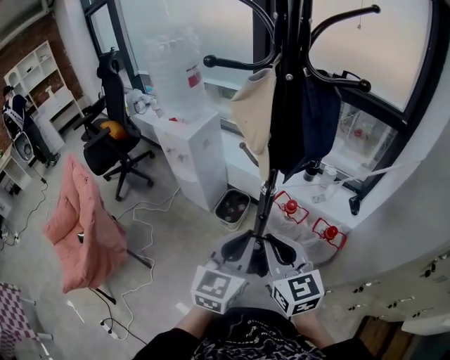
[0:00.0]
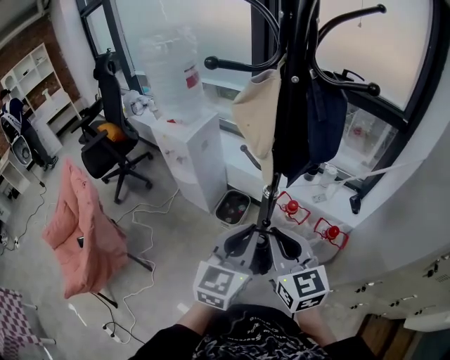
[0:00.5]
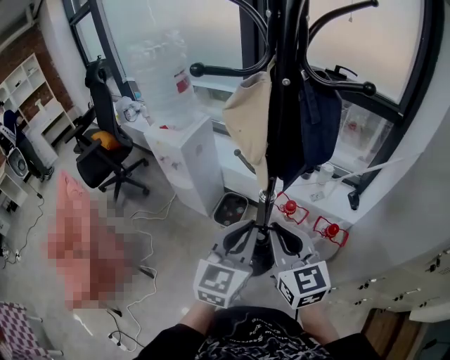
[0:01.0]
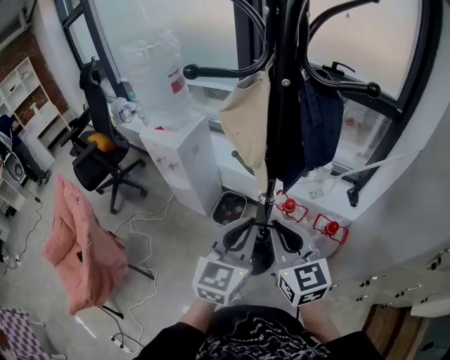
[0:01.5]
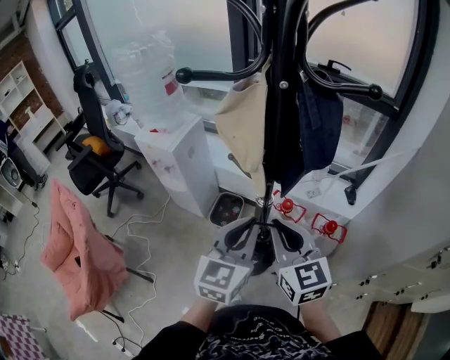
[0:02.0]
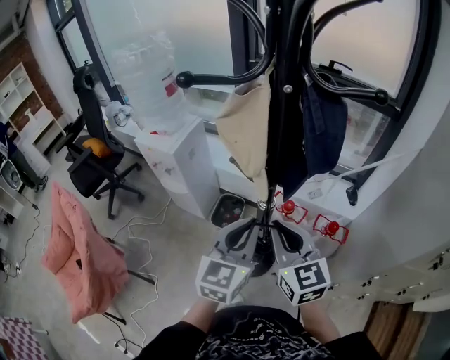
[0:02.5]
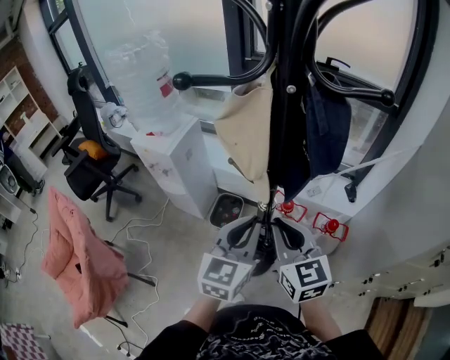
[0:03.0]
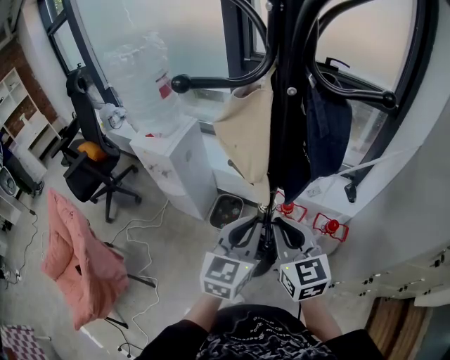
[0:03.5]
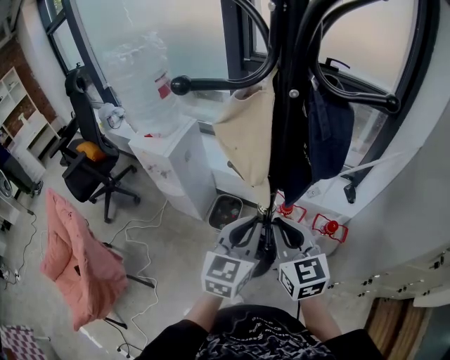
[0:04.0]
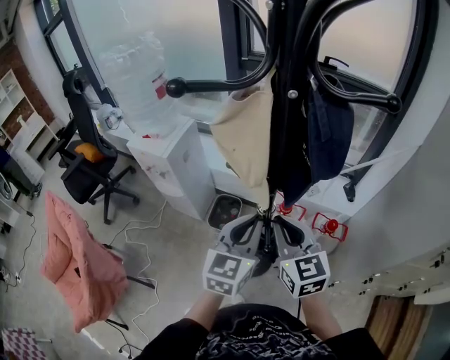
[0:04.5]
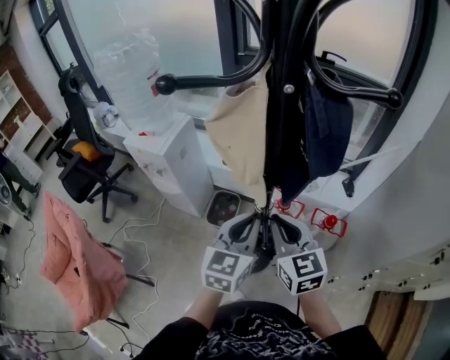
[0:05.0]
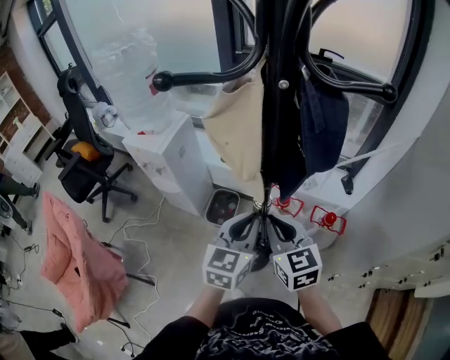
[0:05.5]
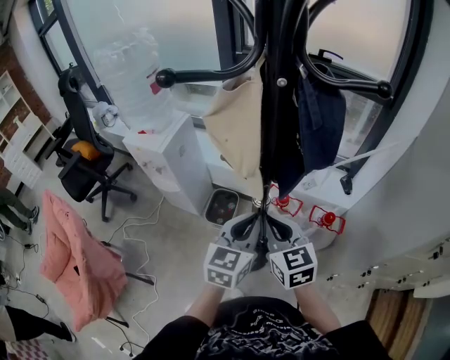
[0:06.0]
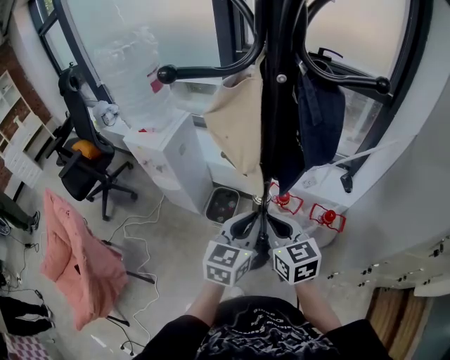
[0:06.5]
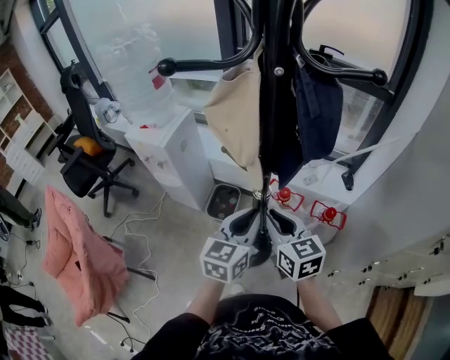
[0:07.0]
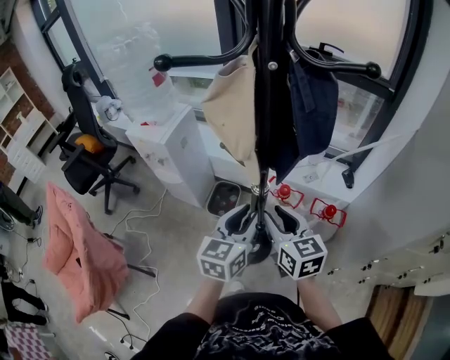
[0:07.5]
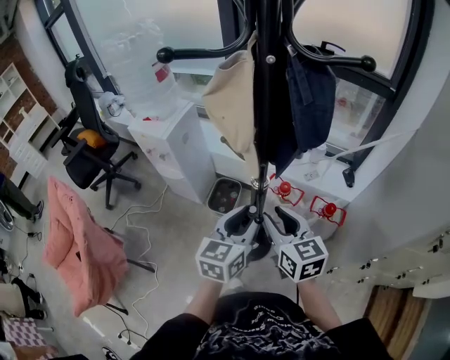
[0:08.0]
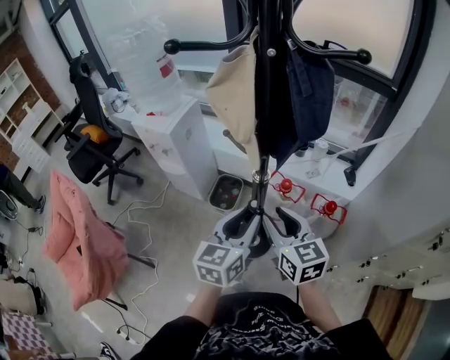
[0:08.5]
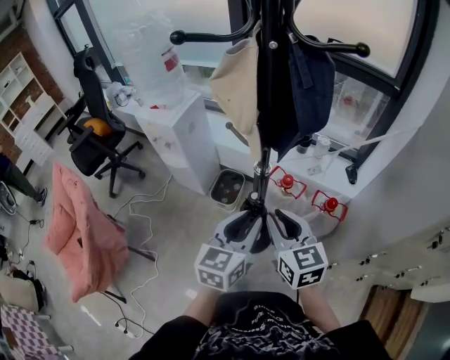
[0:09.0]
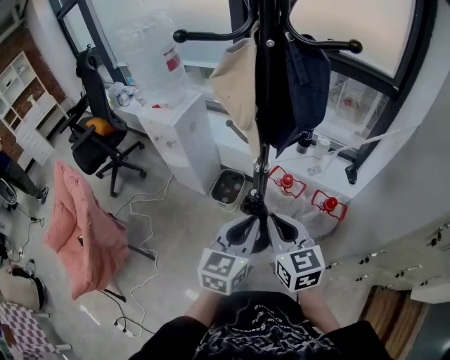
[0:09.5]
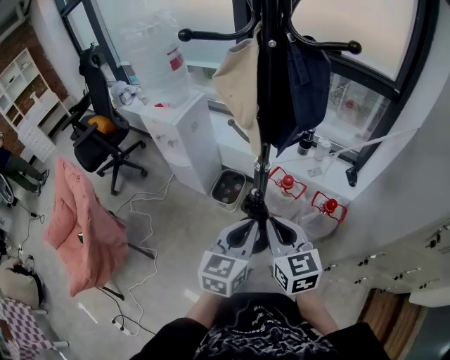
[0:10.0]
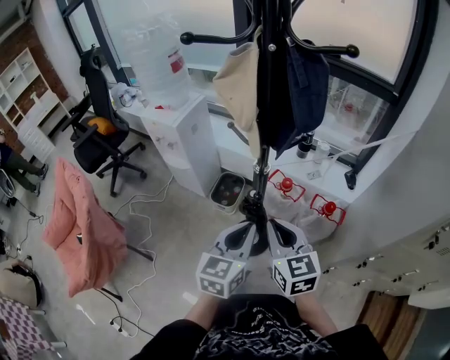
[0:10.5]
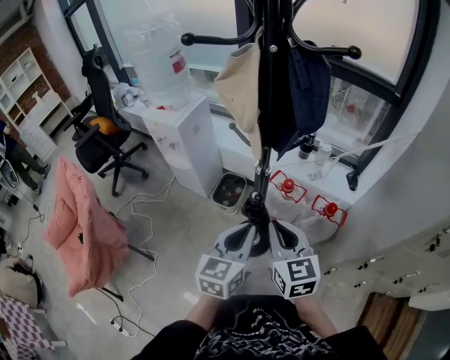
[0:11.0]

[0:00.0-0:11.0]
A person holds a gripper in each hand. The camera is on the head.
0:00.0 to 0:02.0: Both grippers travel together forward, some 5 cm.
0:02.0 to 0:03.5: The grippers stay close to where they were, moving slightly.
0:03.5 to 0:05.5: There are only small adjustments of the grippers.
0:05.5 to 0:07.5: The right gripper opens up; the left gripper opens.
0:07.5 to 0:09.0: The grippers both shift backward by about 5 cm.
0:09.0 to 0:11.0: The left gripper closes up.

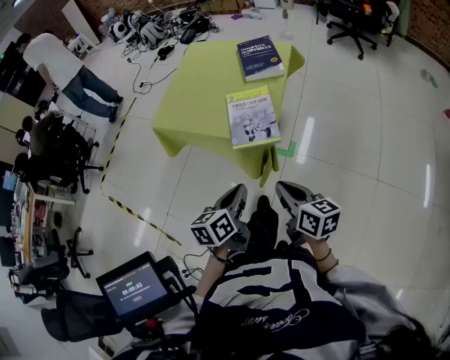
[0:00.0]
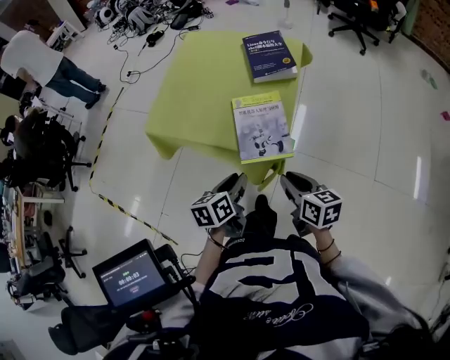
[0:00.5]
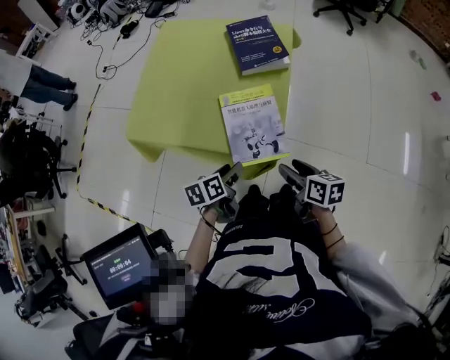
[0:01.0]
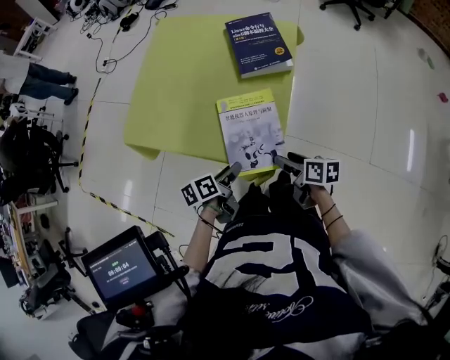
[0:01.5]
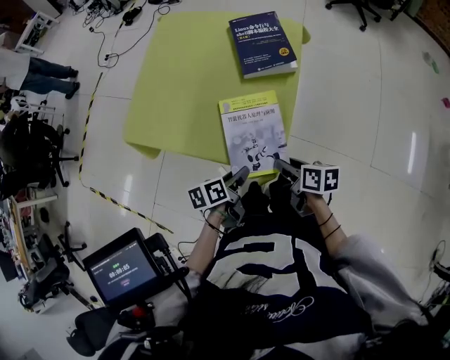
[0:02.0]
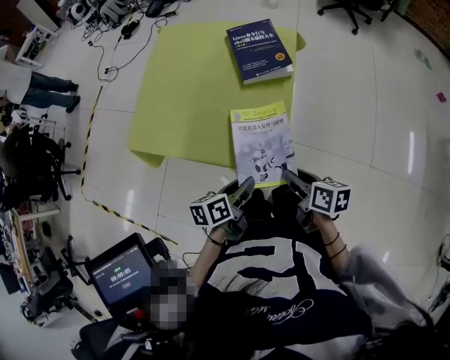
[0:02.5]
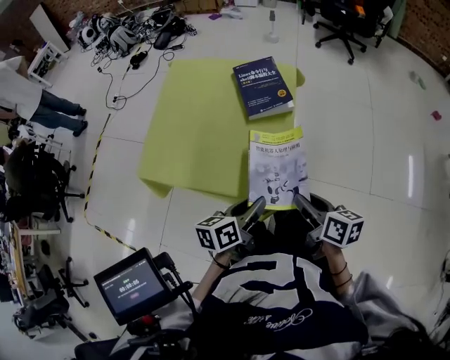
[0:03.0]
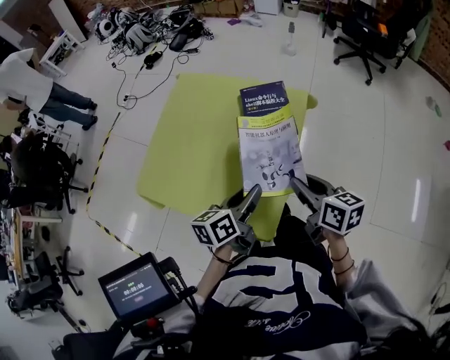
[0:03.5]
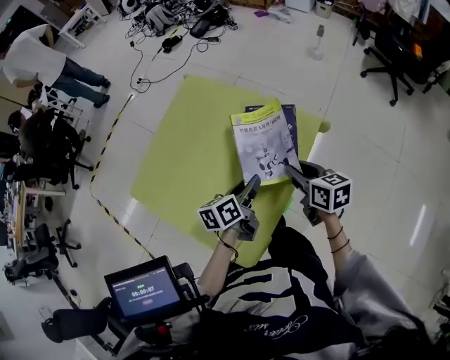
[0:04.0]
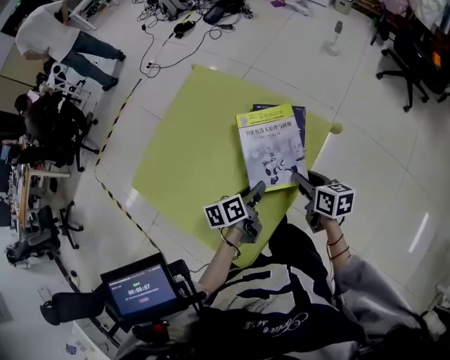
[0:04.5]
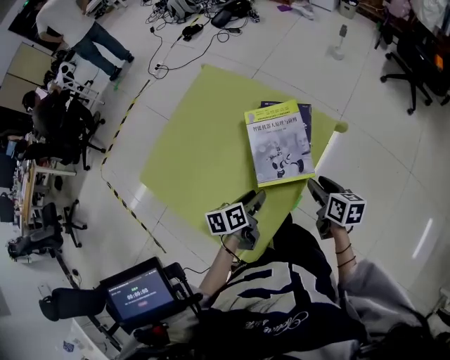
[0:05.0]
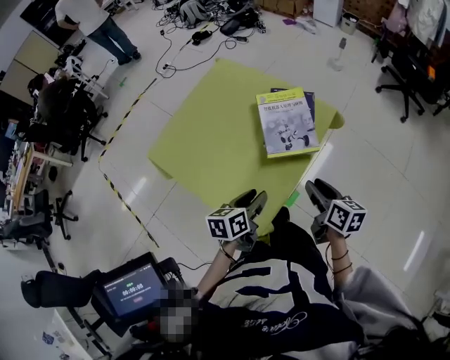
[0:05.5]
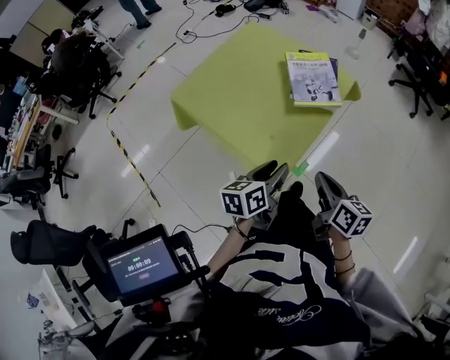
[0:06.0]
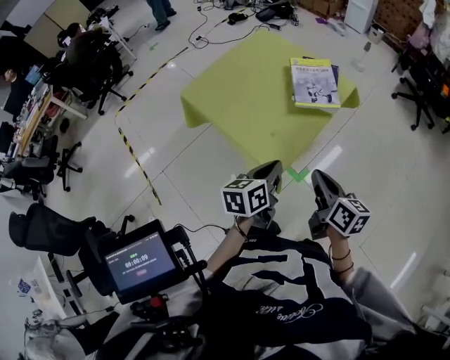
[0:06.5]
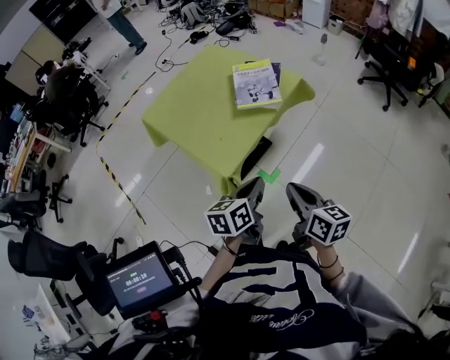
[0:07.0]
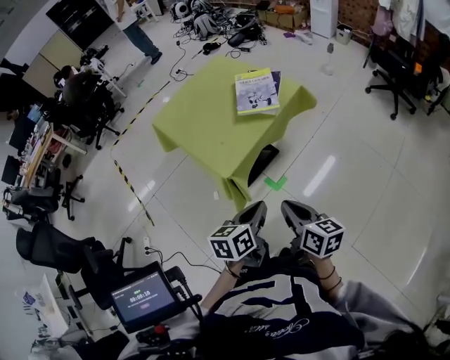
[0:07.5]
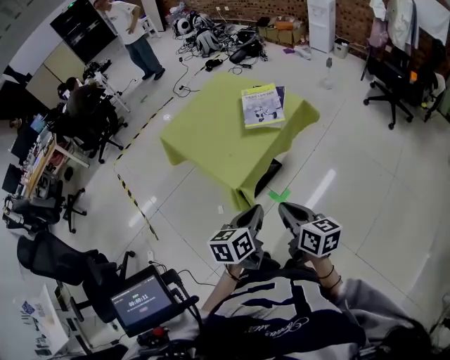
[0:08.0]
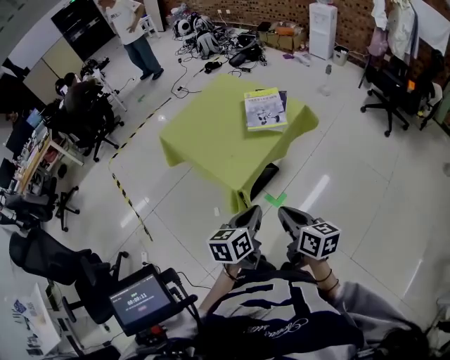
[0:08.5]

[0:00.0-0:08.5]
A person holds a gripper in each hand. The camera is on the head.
0:00.0 to 0:02.0: The grippers both shift forward and downward by approximately 30 cm. The left gripper rotates some 30 degrees, and opens. Meanwhile the right gripper rotates some 30 degrees, and opens its fingers.
0:02.0 to 0:04.0: Both grippers travel together forward, roughly 30 cm. The right gripper rotates some 30 degrees, while the left gripper rotates about 20 degrees.
0:04.0 to 0:06.5: Both grippers move backward, about 35 cm. The right gripper closes up. The left gripper closes up.
0:06.5 to 0:08.5: Both grippers travel together backward and to the right, approximately 15 cm.

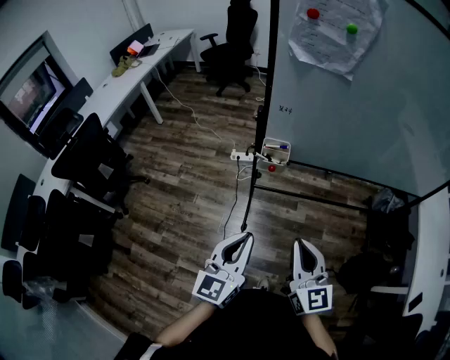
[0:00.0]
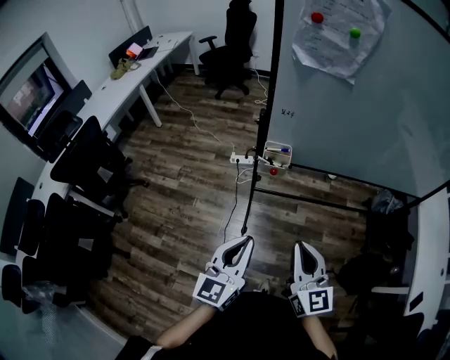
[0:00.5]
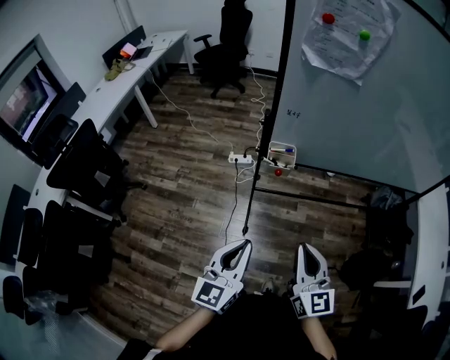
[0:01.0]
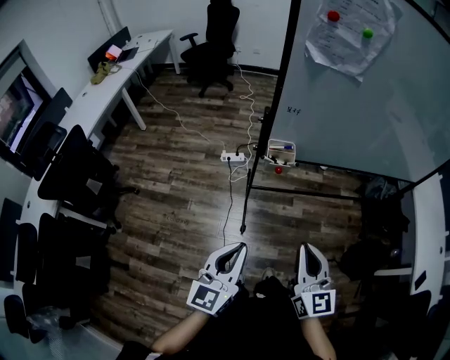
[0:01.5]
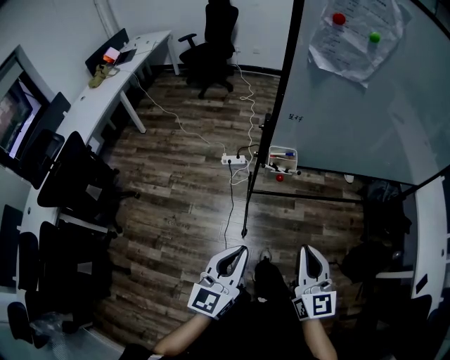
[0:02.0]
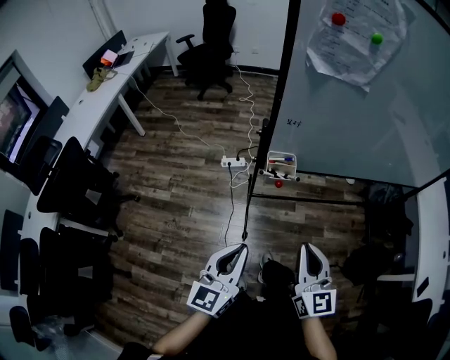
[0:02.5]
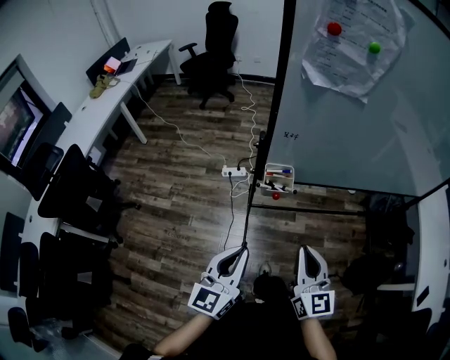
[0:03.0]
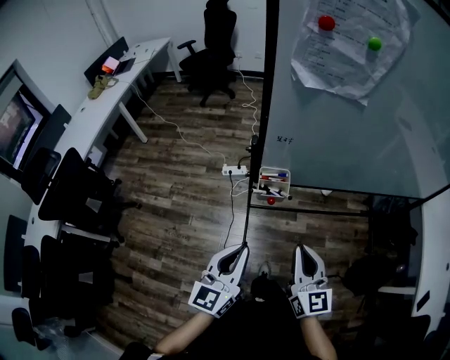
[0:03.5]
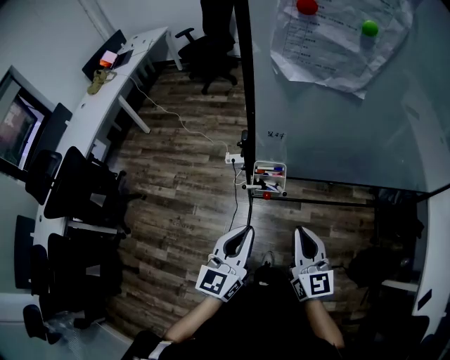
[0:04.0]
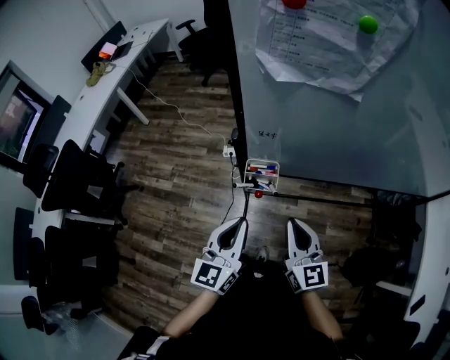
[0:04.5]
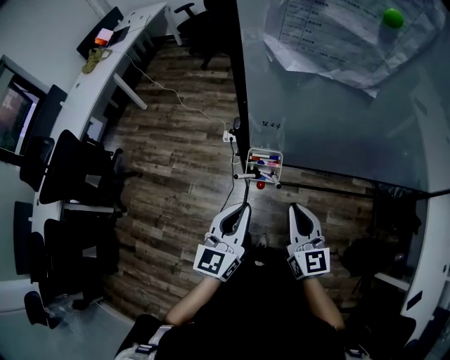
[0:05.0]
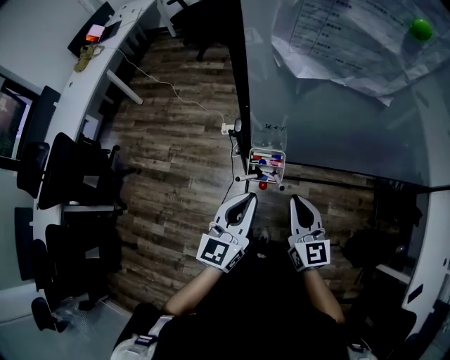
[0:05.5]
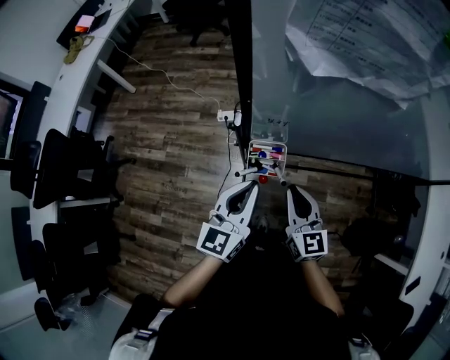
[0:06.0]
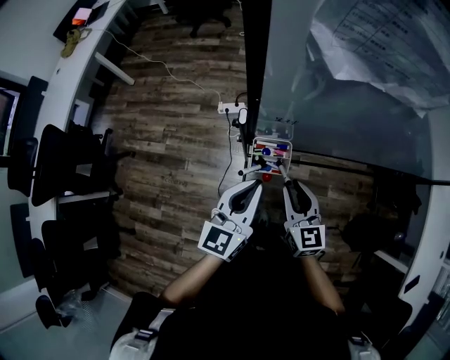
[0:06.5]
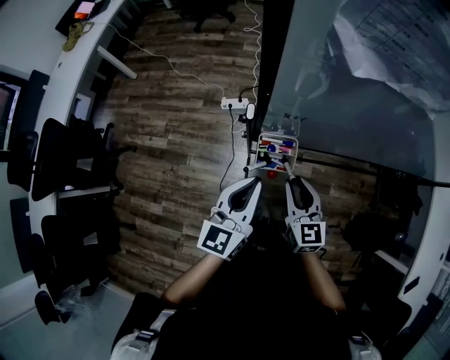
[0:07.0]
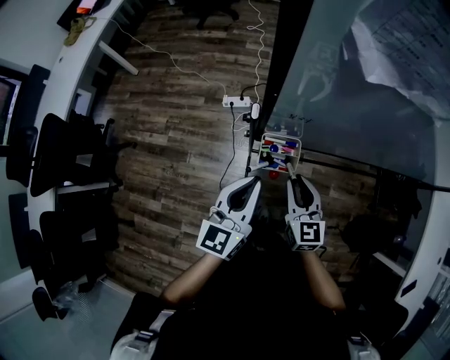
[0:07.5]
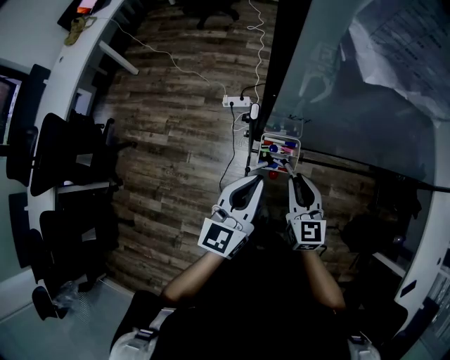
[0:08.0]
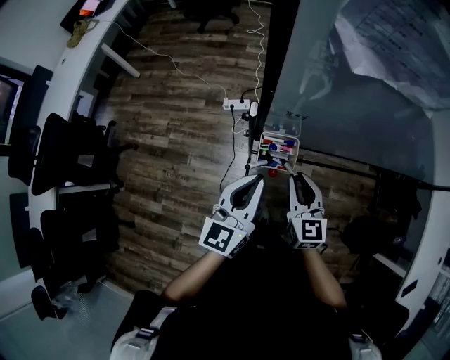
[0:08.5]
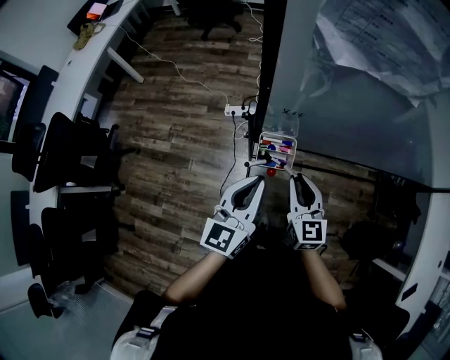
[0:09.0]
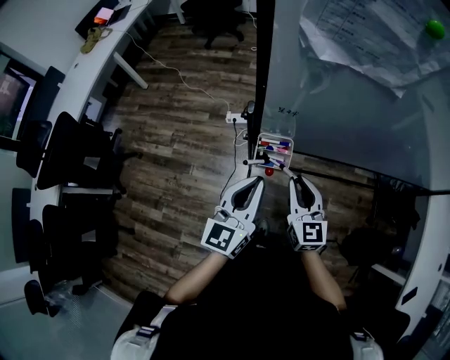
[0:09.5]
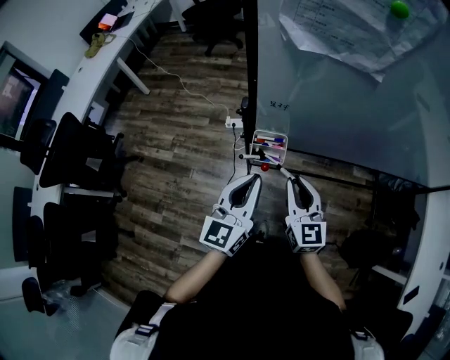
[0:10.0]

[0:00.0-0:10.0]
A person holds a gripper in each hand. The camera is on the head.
0:00.0 to 0:02.0: The left gripper is displaced to the left by some 10 cm. The right gripper heads to the left, covering roughly 5 cm.
0:02.0 to 0:04.0: The left gripper shifts some 20 cm forward and to the right; the right gripper is displaced forward by approximately 15 cm.
0:04.0 to 0:06.0: The right gripper travels forward and downward by some 10 cm. Meanwhile the left gripper moves forward, some 10 cm.
0:06.0 to 0:08.0: The right gripper changes place by about 5 cm.
0:08.0 to 0:10.0: The right gripper goes some 10 cm upward and backward. The left gripper travels backward by some 5 cm.
